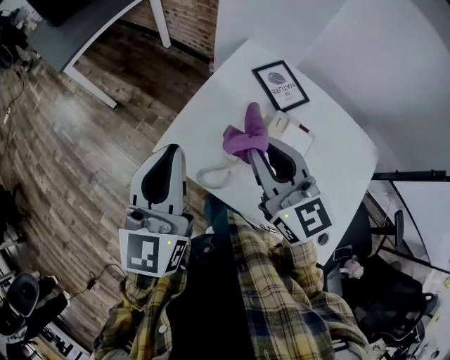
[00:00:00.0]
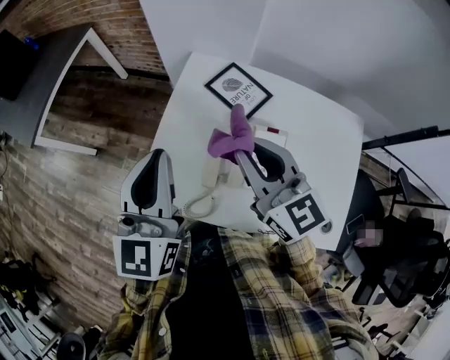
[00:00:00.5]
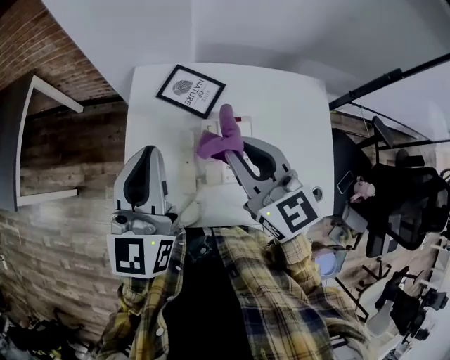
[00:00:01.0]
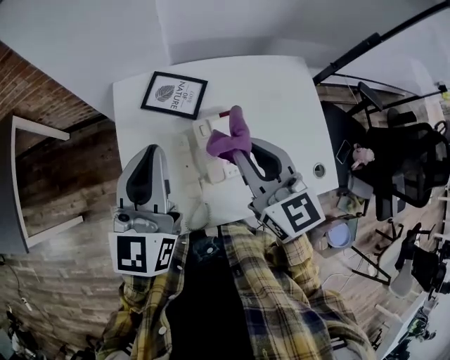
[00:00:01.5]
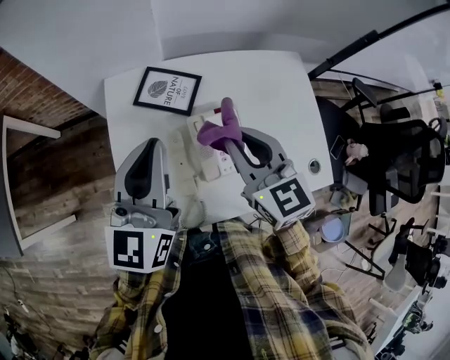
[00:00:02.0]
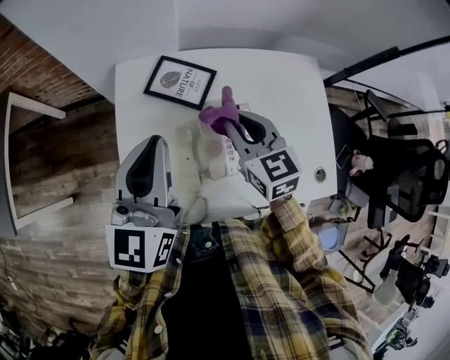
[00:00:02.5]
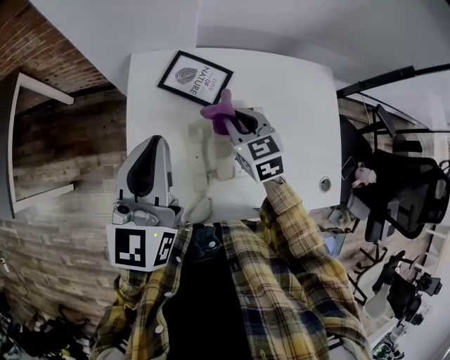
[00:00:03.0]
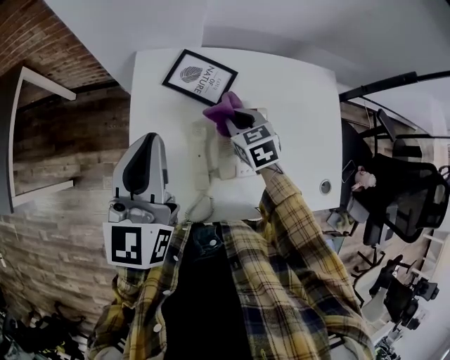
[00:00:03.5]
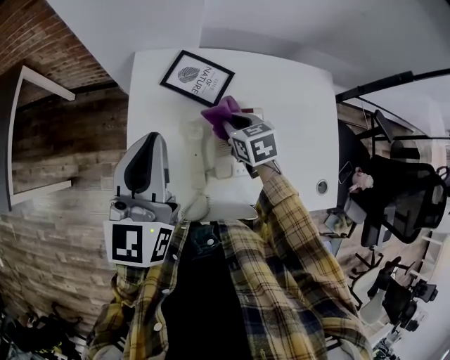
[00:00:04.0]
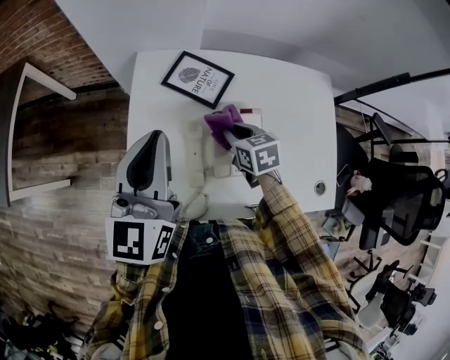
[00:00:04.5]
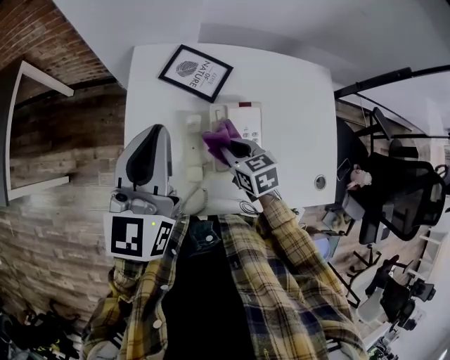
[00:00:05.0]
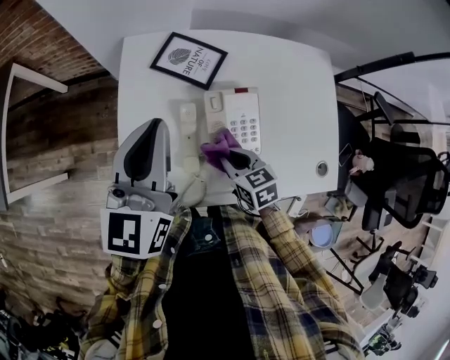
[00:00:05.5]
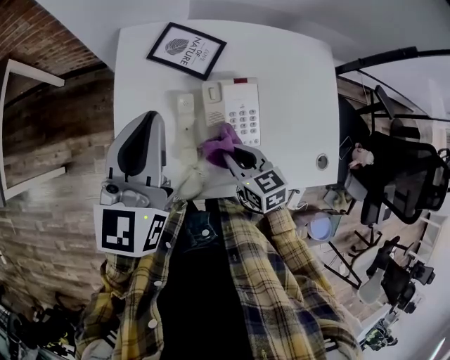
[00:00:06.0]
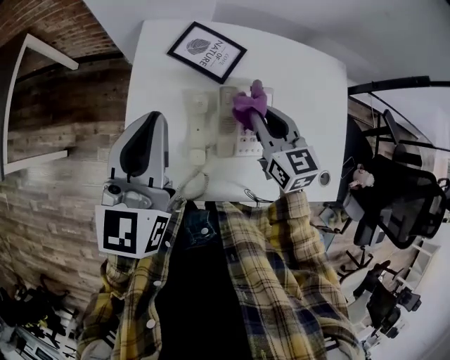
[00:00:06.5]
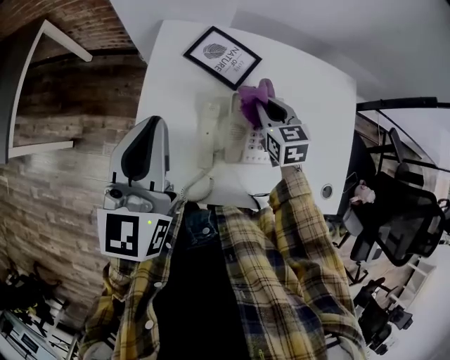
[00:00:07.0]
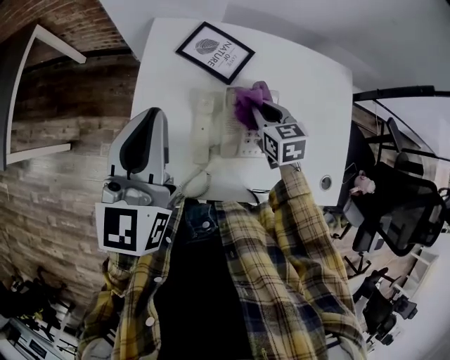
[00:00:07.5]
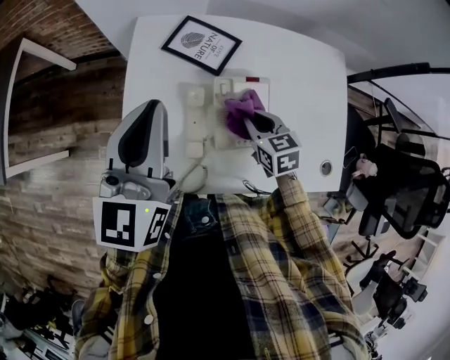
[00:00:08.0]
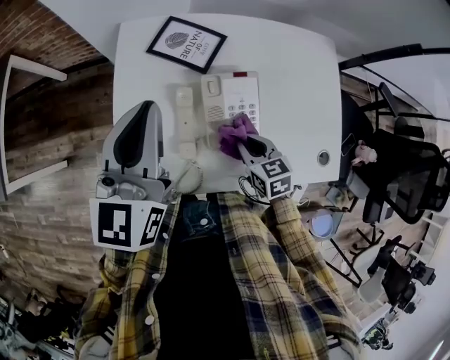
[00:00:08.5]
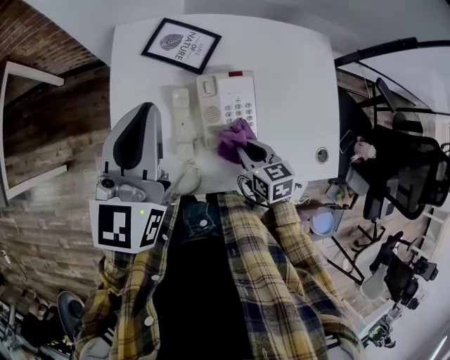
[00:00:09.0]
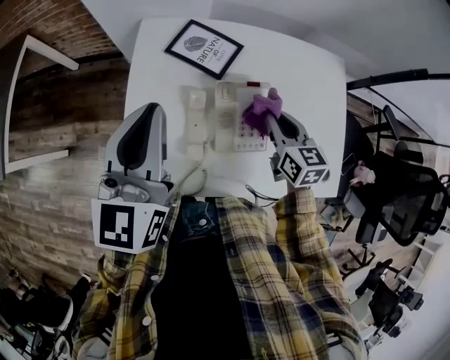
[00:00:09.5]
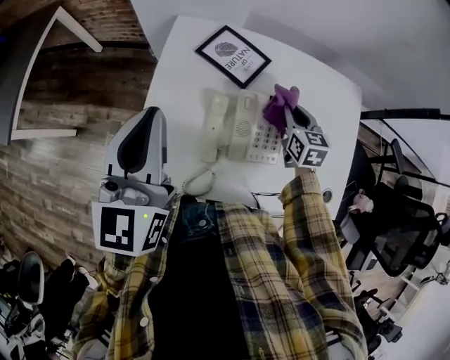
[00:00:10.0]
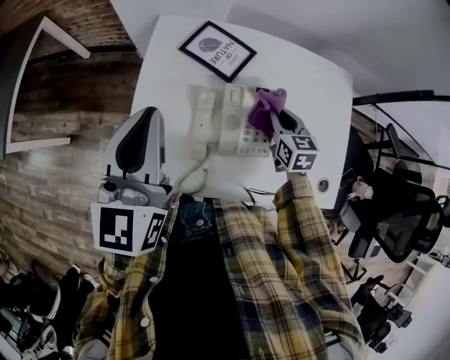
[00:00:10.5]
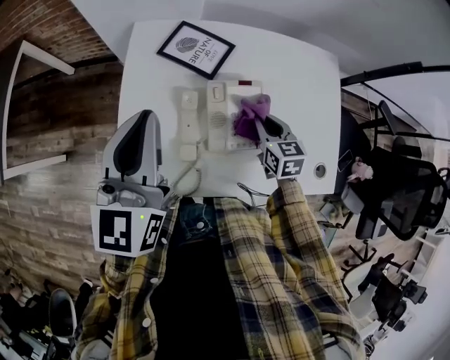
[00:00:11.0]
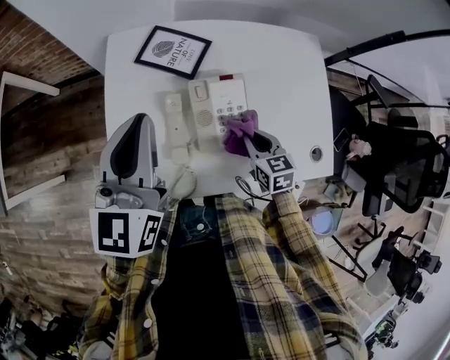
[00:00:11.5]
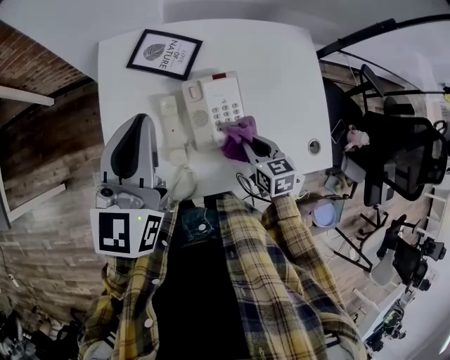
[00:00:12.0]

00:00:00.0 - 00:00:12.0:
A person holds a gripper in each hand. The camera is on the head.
00:00:00.0 - 00:00:02.0: The left gripper ends up approximately 20 cm from where it was, and rotates roughly 50 degrees. The right gripper ends up roughly 15 cm from where it was, and turns by roughly 50 degrees.
00:00:02.0 - 00:00:04.0: The left gripper ends up about 5 cm from where it was. The right gripper heads downward and forward, covering roughly 20 cm, and rotates about 30 degrees.
00:00:04.0 - 00:00:06.0: The right gripper is displaced backward by about 15 cm.
00:00:06.0 - 00:00:08.0: The right gripper travels forward and to the right by roughly 10 cm.
00:00:08.0 - 00:00:10.0: The right gripper travels forward and to the right by some 10 cm; the left gripper shifts approximately 5 cm to the left.
00:00:10.0 - 00:00:12.0: The right gripper is displaced backward by some 20 cm. Meanwhile the left gripper is displaced to the right by roughly 10 cm.

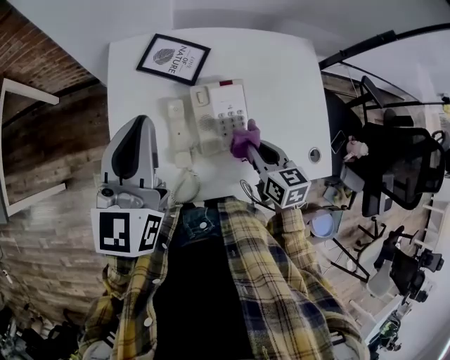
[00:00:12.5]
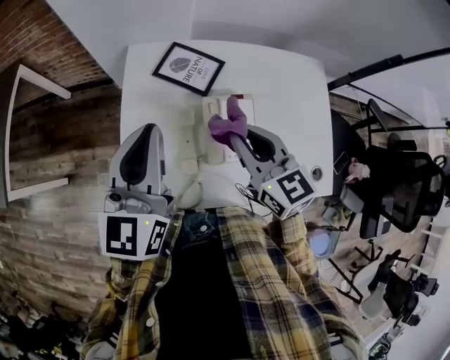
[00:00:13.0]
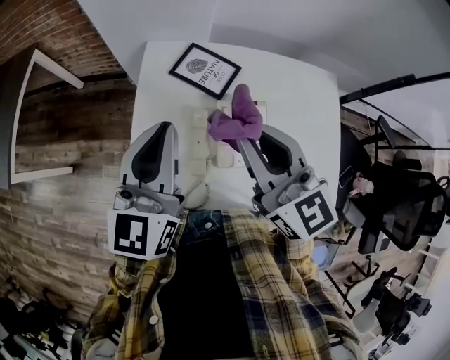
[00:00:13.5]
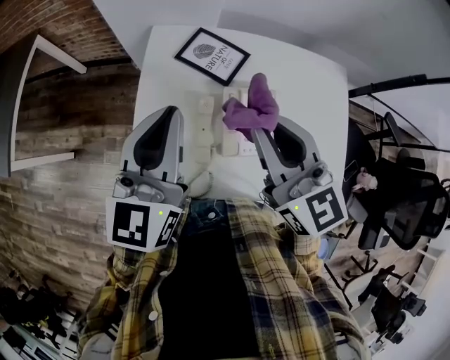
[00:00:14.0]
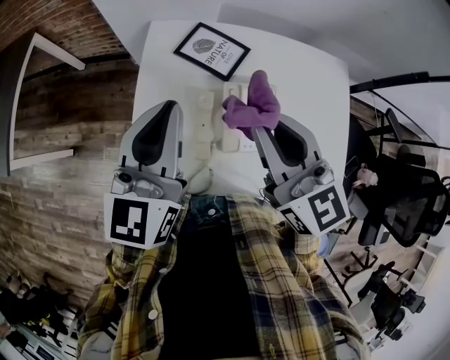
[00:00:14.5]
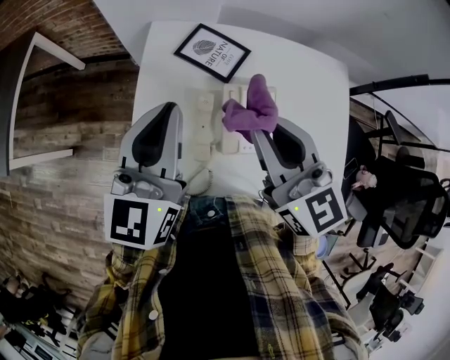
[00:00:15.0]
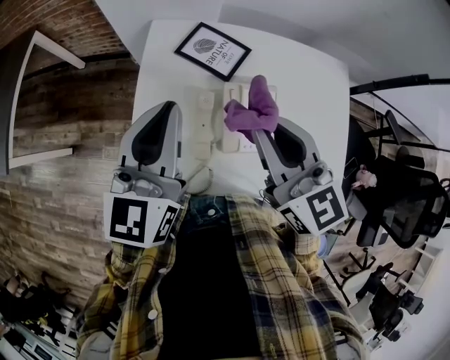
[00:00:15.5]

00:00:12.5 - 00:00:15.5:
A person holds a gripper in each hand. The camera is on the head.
00:00:12.5 - 00:00:14.0: The right gripper travels upward and to the left by roughly 25 cm, and changes its angle by some 40 degrees.
00:00:14.0 - 00:00:15.5: Both grippers stay put.

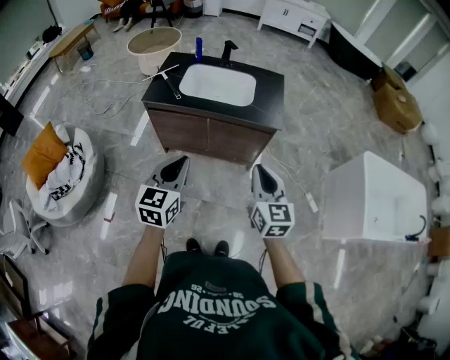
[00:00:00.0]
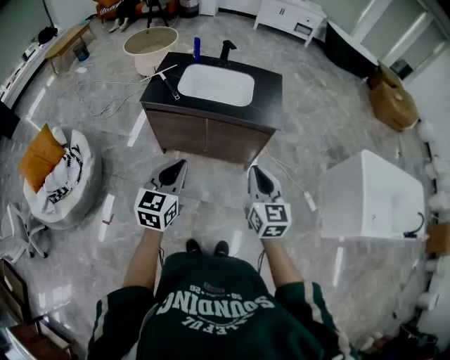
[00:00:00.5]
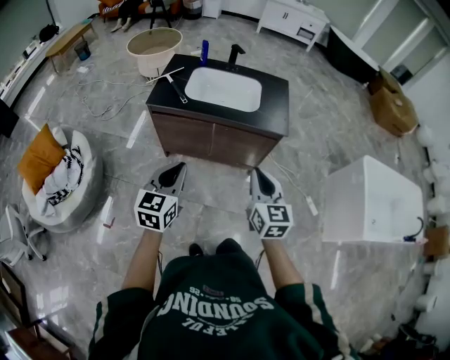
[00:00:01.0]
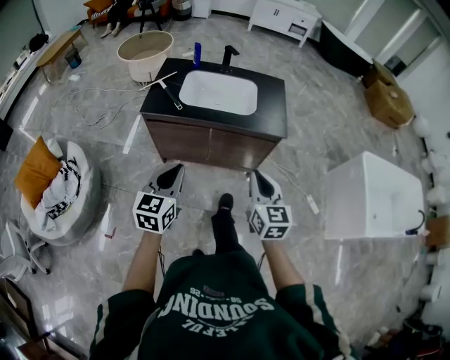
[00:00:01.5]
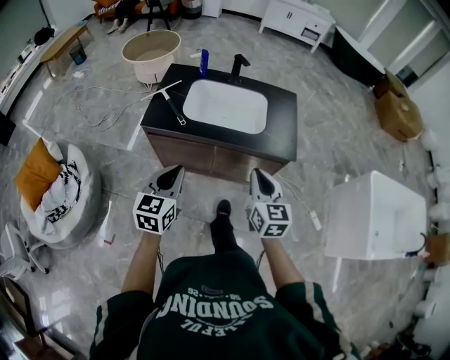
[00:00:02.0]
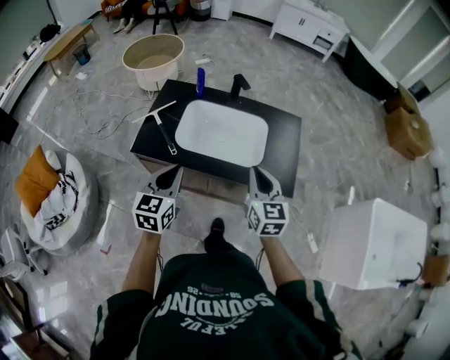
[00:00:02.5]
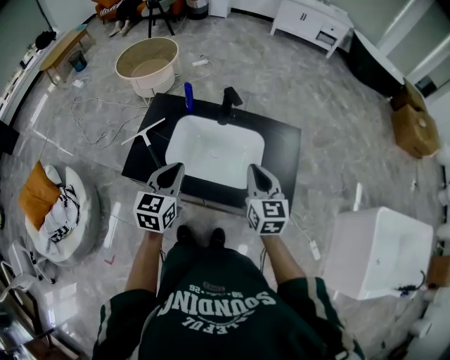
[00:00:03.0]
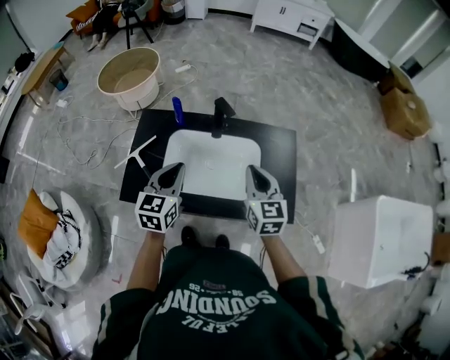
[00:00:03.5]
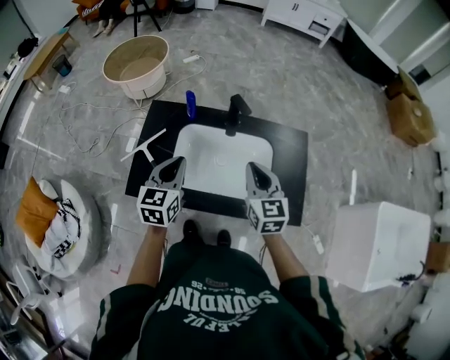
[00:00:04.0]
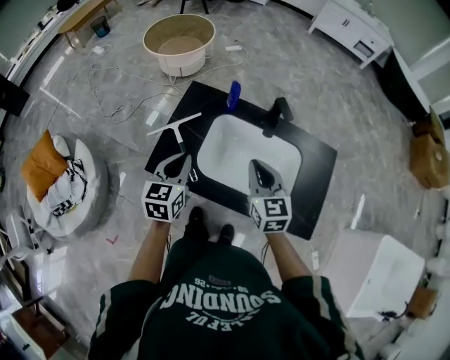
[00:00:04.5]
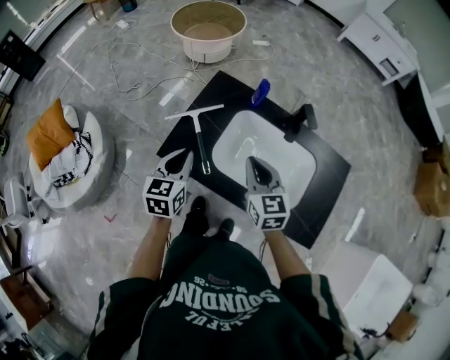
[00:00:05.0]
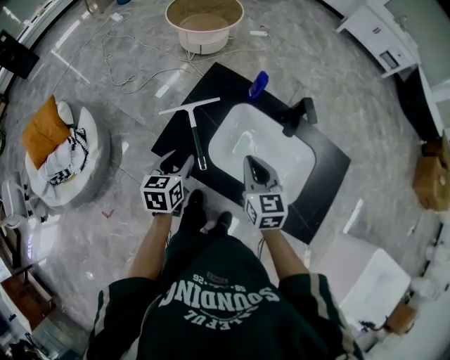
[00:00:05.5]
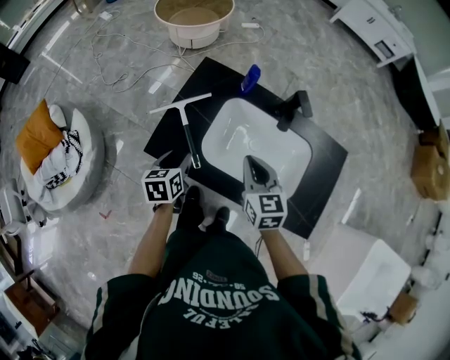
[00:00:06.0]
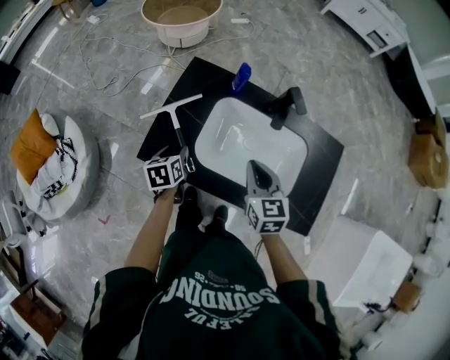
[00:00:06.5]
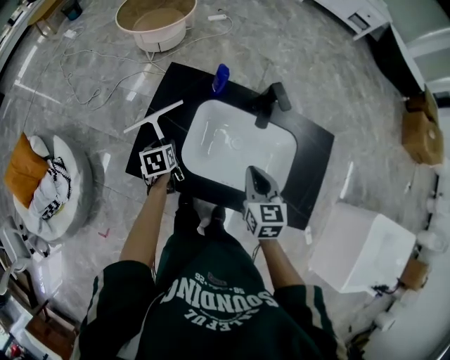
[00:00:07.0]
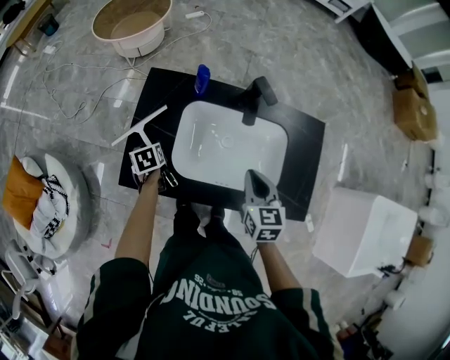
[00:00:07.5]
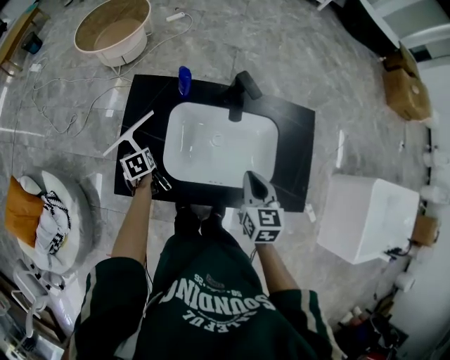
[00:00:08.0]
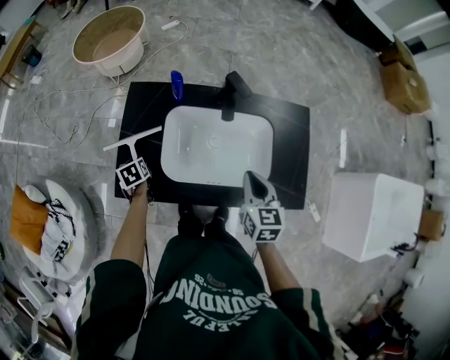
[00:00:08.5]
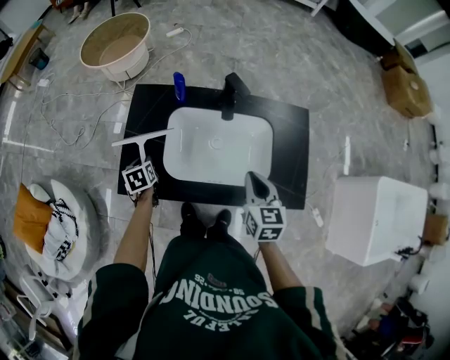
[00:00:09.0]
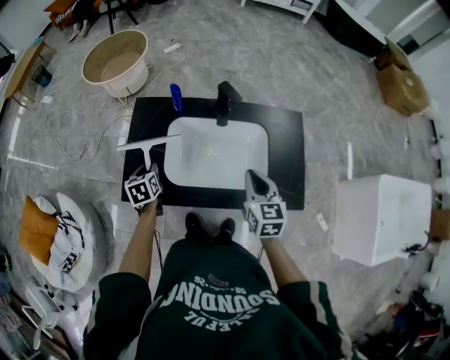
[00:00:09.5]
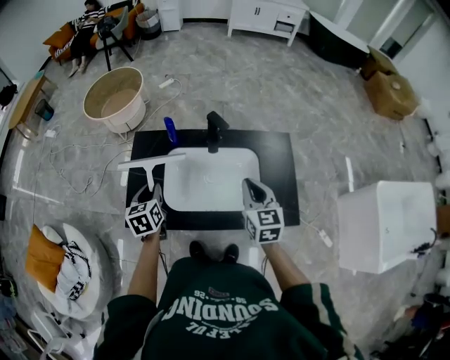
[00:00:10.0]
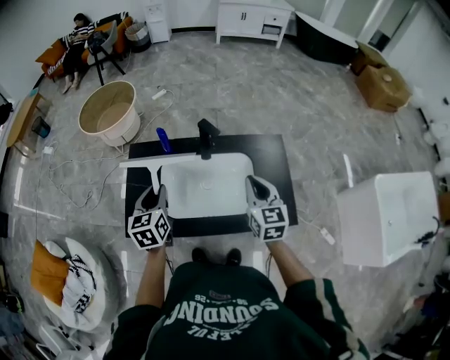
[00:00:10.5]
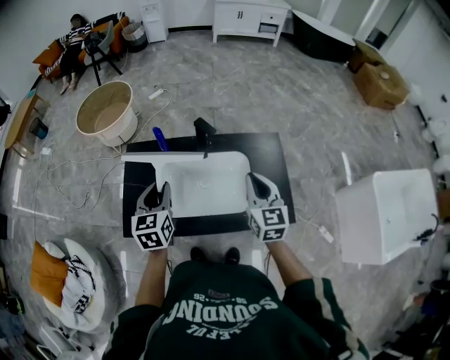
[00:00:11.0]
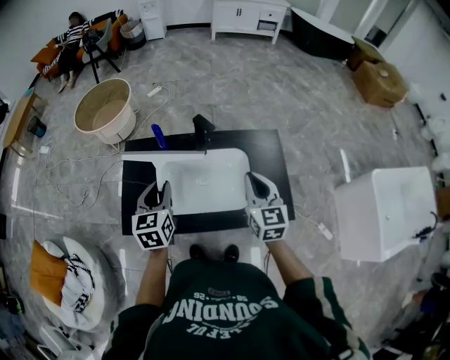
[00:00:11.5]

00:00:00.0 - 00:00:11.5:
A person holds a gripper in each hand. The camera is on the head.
00:00:00.0 - 00:00:02.0: The grippers both shift forward and to the left by roughly 20 cm.
00:00:02.0 - 00:00:04.0: Both grippers travel together forward, roughly 40 cm.
00:00:04.0 - 00:00:06.0: The left gripper moves downward and to the left, some 20 cm, rotates approximately 40 degrees, and opens its fingers. The right gripper shifts approximately 15 cm to the left and downward, and changes its angle by some 20 degrees.
00:00:06.0 - 00:00:07.5: The left gripper moves forward and downward, approximately 15 cm. The right gripper goes about 10 cm to the right, and changes its angle by approximately 20 degrees.
00:00:07.5 - 00:00:09.5: The left gripper travels upward by some 10 cm, and closes up. Meanwhile the right gripper is displaced to the right by approximately 5 cm.
00:00:09.5 - 00:00:11.5: The left gripper moves upward and to the right, approximately 20 cm, and changes its angle by about 30 degrees, while the right gripper goes some 10 cm upward and to the right.
